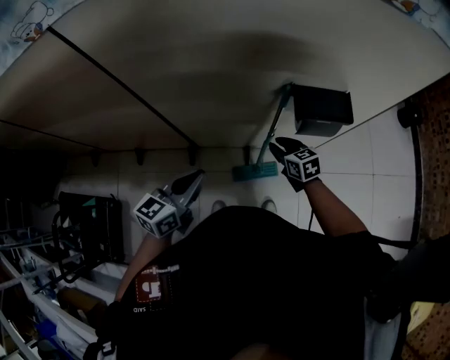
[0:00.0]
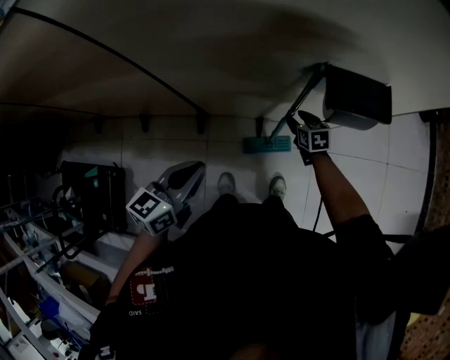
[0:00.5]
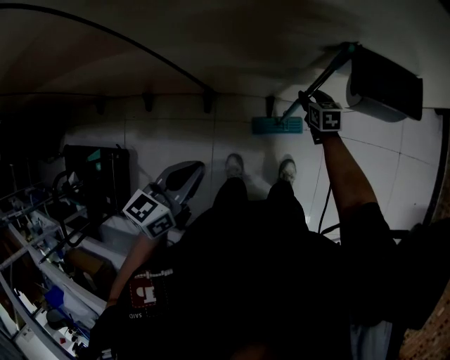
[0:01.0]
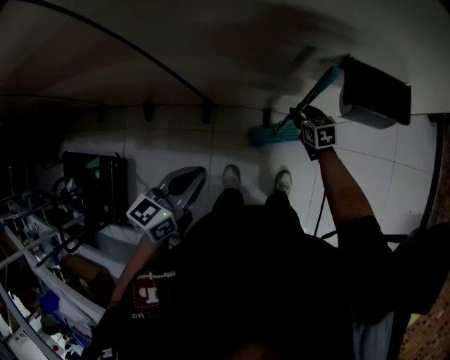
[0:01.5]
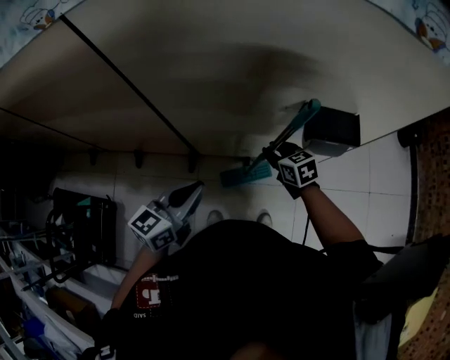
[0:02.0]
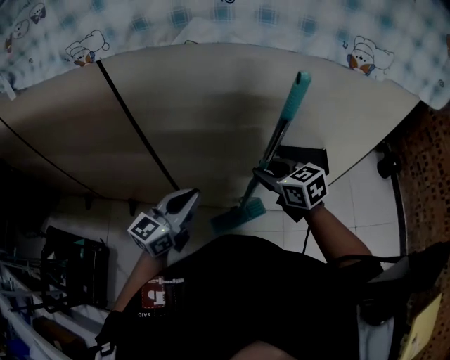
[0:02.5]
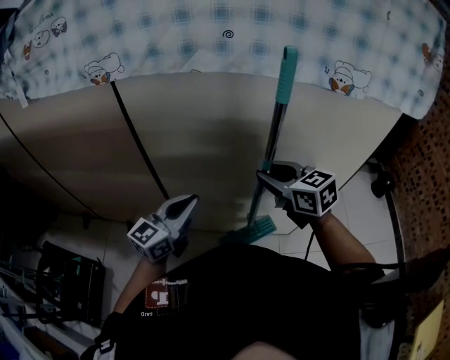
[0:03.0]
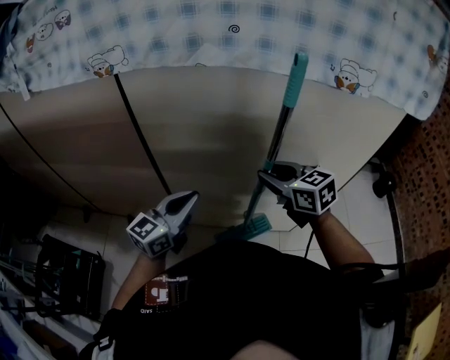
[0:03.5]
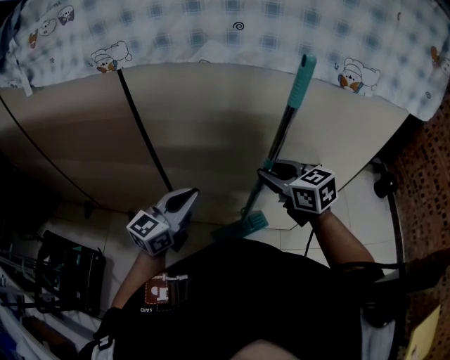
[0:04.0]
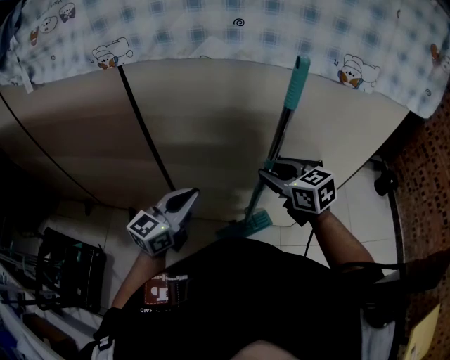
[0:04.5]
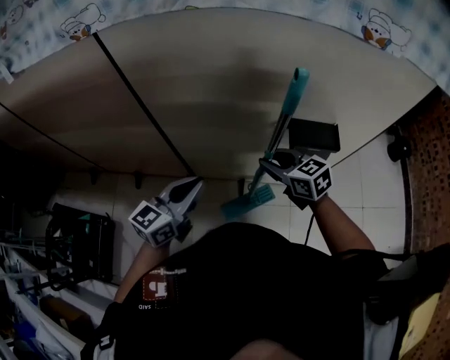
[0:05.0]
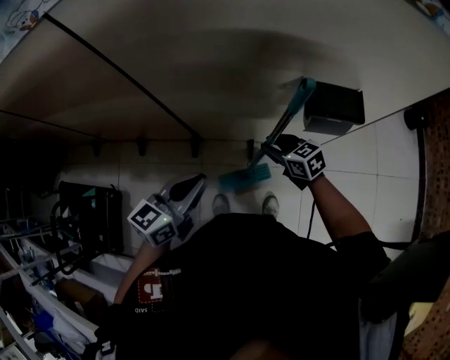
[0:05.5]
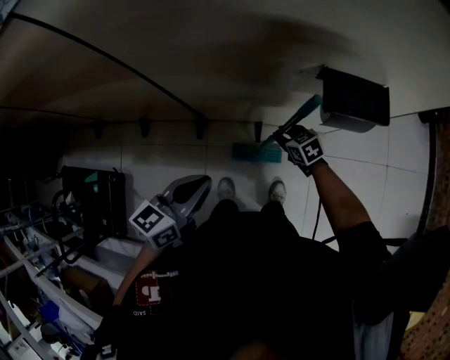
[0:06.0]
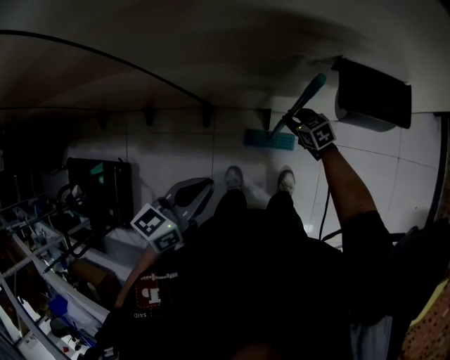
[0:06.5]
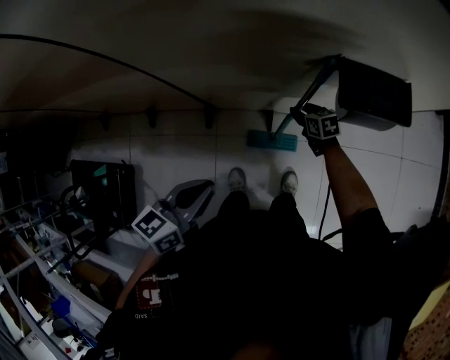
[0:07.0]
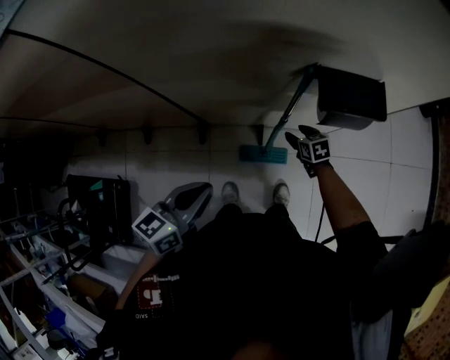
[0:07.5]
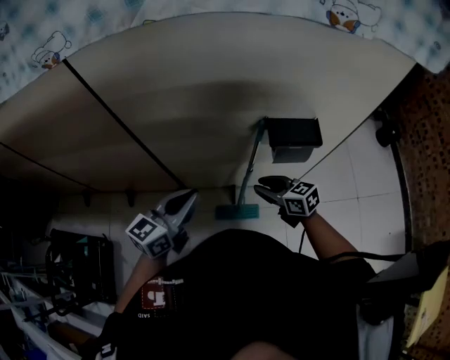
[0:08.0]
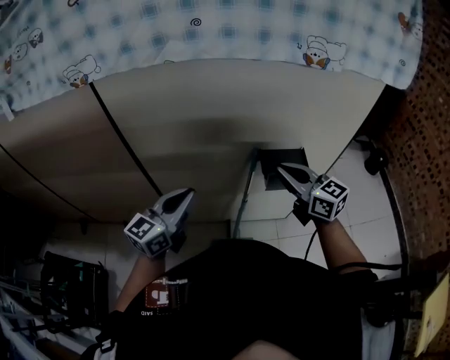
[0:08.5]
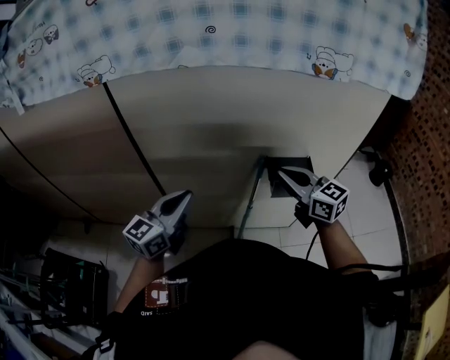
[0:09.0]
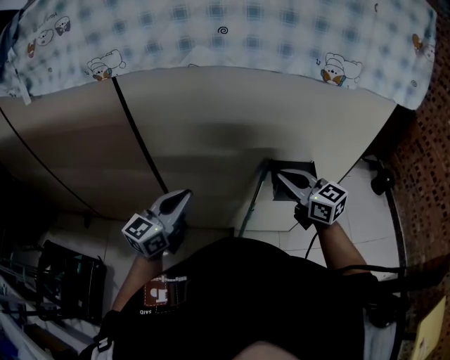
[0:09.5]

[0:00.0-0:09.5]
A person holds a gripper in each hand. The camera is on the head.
0:00.0 to 0:02.0: The left gripper goes downward and returns, roughly 5 cm each way. Meanwhile the right gripper moves to the left, approximately 5 cm, and travels downward and back again, some 15 cm each way.
0:02.0 to 0:04.0: The left gripper shifts about 10 cm upward. The right gripper moves upward, some 25 cm, and swivels about 20 degrees.
0:04.0 to 0:05.5: The left gripper shifts about 15 cm downward and backward, and swivels some 20 degrees, while the right gripper moves downward, about 30 cm.
0:05.5 to 0:07.5: The right gripper is displaced downward and to the right by roughly 20 cm, swivels approximately 20 degrees, and opens its fingers.
0:07.5 to 0:09.5: The left gripper shifts roughly 20 cm upward and forward, and turns by roughly 30 degrees, while the right gripper travels upward by approximately 50 cm, angles its fingers upward, by about 40 degrees, and closes.

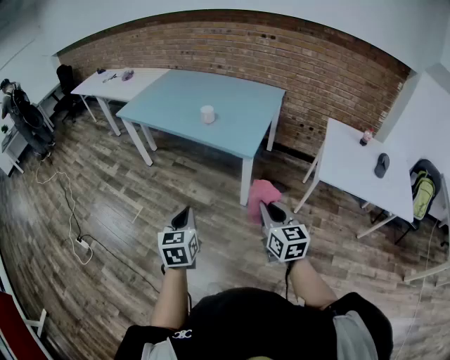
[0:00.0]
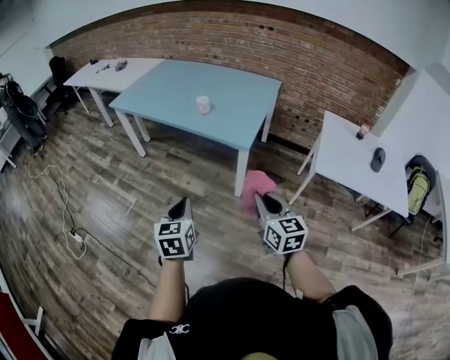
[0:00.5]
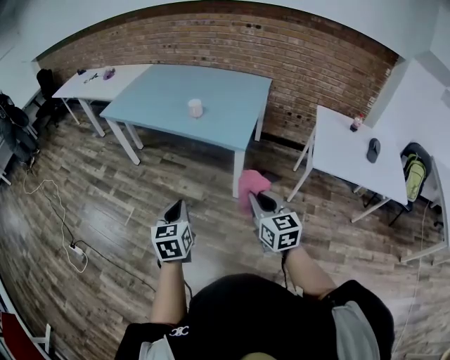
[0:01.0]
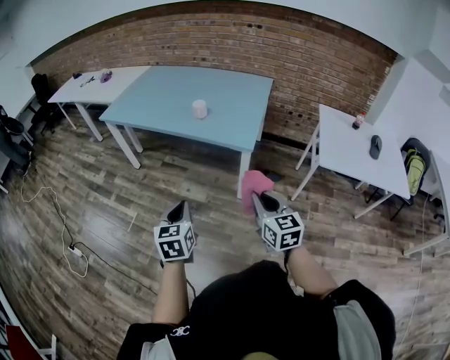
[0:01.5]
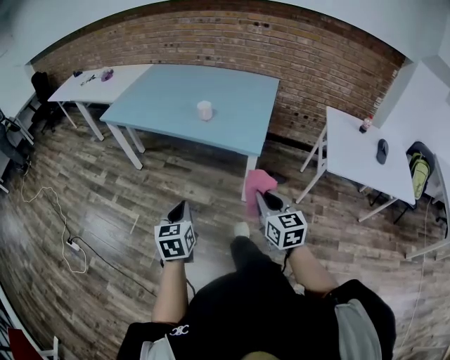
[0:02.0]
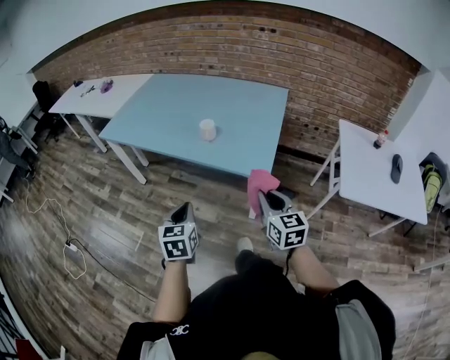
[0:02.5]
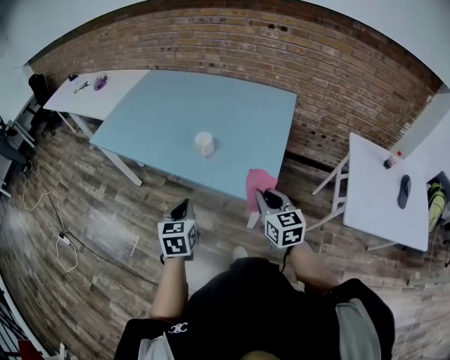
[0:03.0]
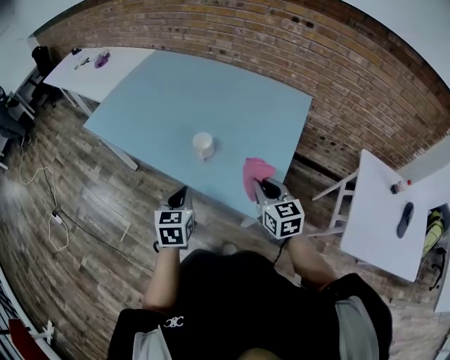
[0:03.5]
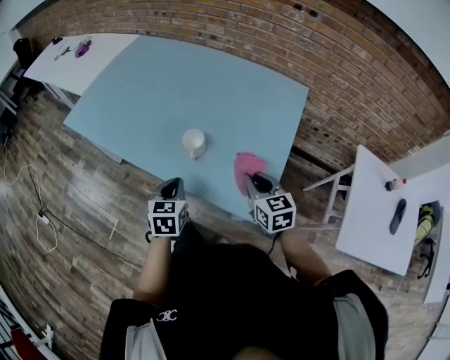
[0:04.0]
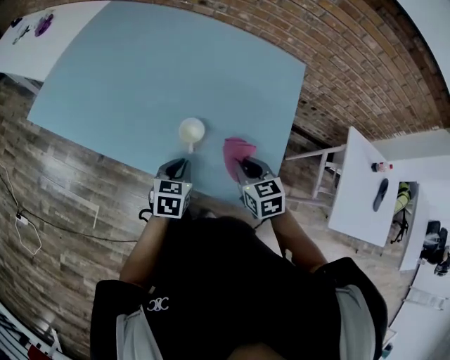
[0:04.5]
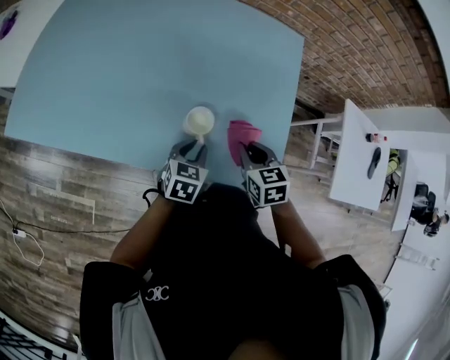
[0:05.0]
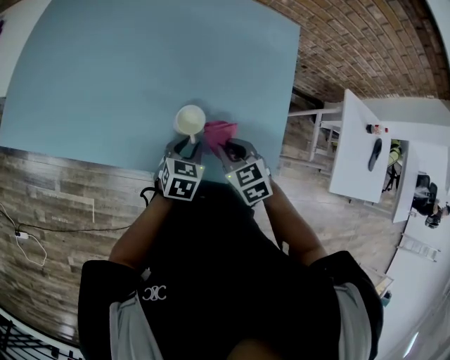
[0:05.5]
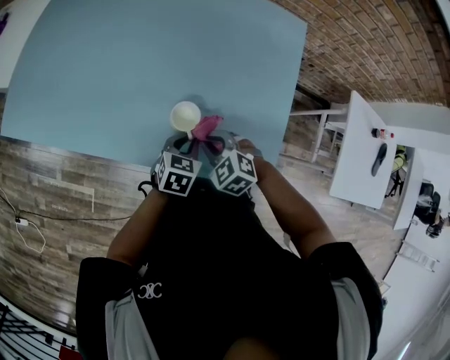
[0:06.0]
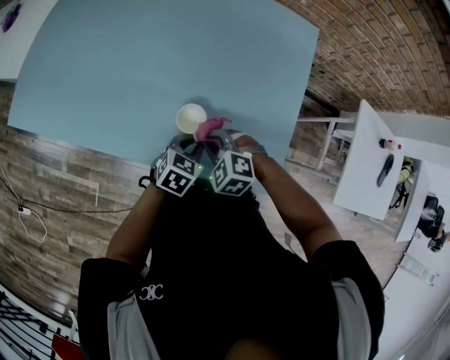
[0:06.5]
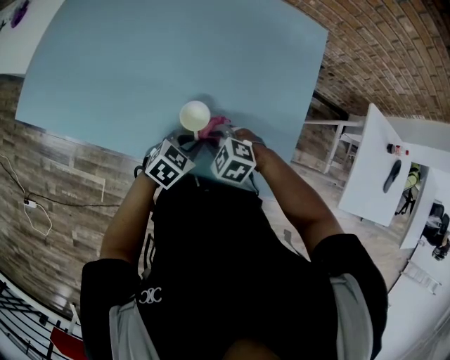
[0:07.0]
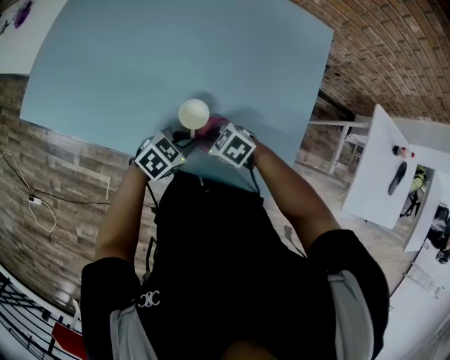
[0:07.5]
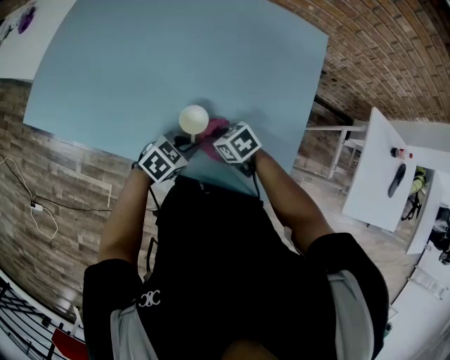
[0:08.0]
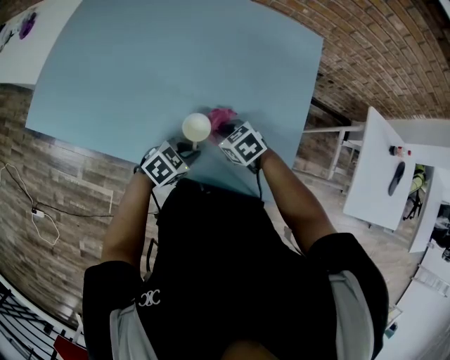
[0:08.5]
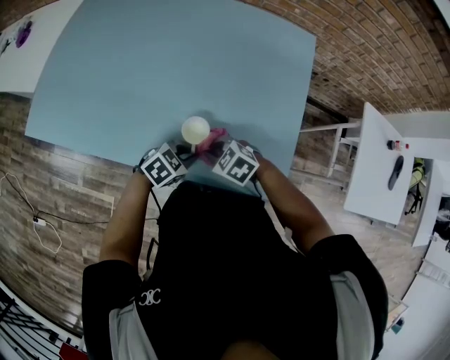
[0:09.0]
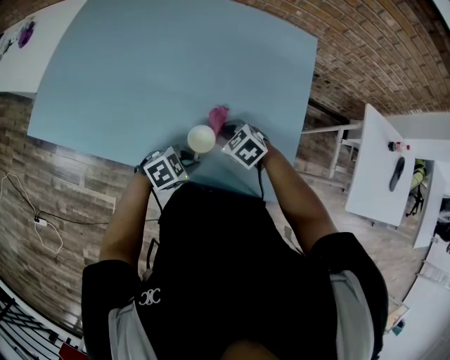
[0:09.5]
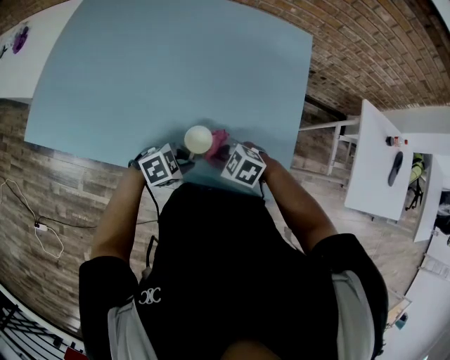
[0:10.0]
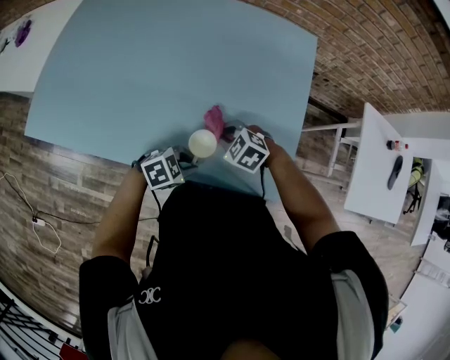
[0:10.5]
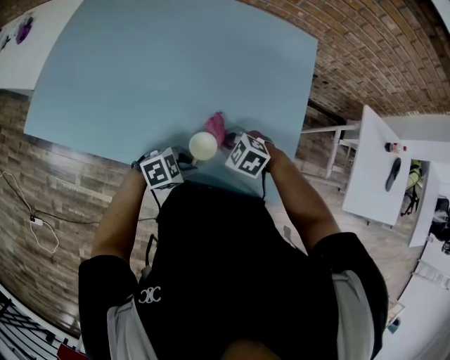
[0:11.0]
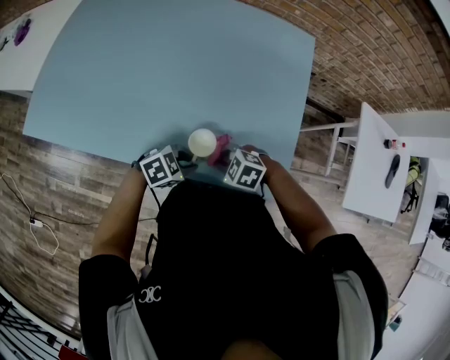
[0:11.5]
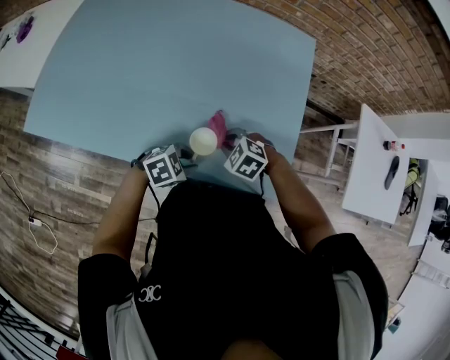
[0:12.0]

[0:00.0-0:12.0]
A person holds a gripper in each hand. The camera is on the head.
0:00.0 to 0:02.0: Both grippers move forward and to the left, roughly 10 cm.
0:02.0 to 0:04.0: Both grippers are carried forward, about 40 cm.
0:04.0 to 0:06.0: The right gripper shifts by some 20 cm, and changes its angle by approximately 40 degrees. Meanwhile the left gripper moves downward, roughly 10 cm, and swivels approximately 30 degrees.
0:06.0 to 0:08.0: The right gripper travels downward by about 5 cm, and swivels roughly 40 degrees; the left gripper rotates some 30 degrees.
0:08.0 to 0:10.0: The right gripper ends up about 5 cm from where it was, and turns by roughly 30 degrees. Meanwhile the left gripper rotates roughly 20 degrees.

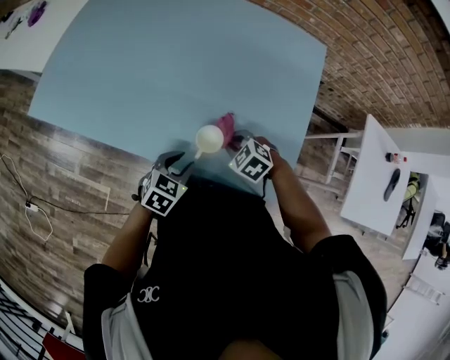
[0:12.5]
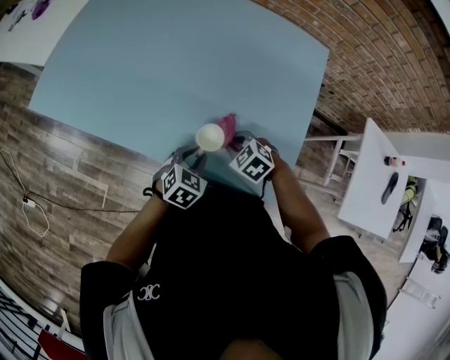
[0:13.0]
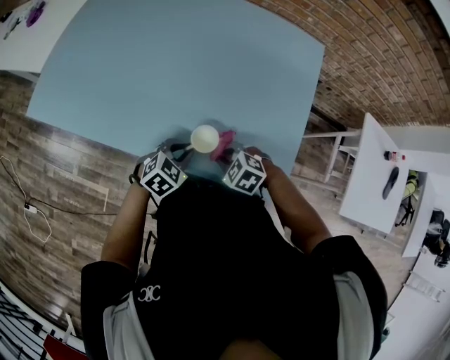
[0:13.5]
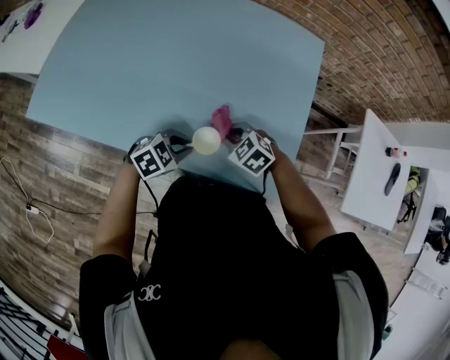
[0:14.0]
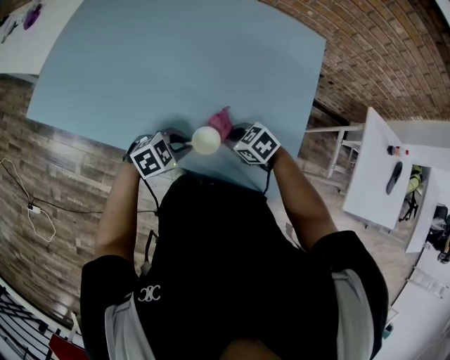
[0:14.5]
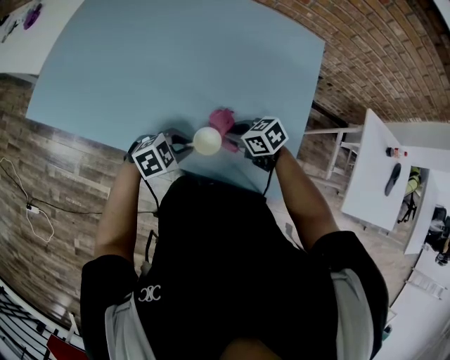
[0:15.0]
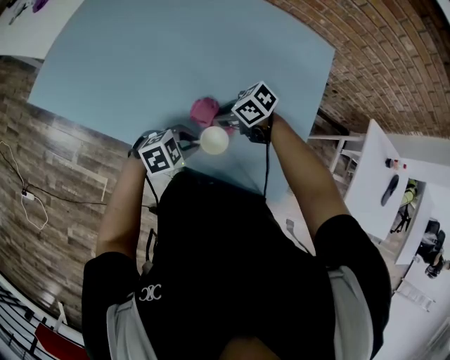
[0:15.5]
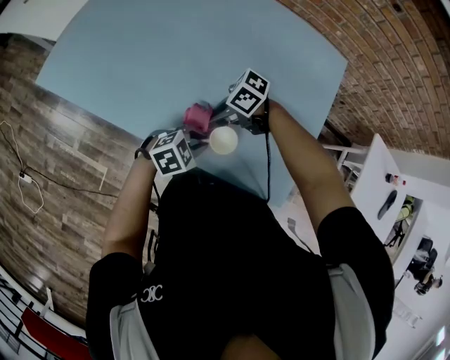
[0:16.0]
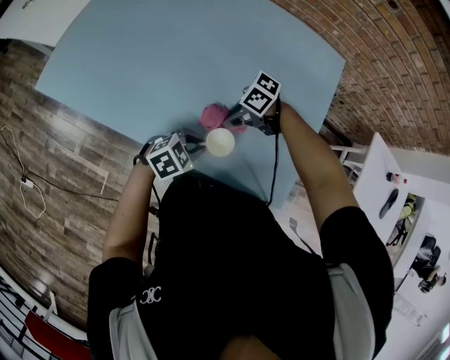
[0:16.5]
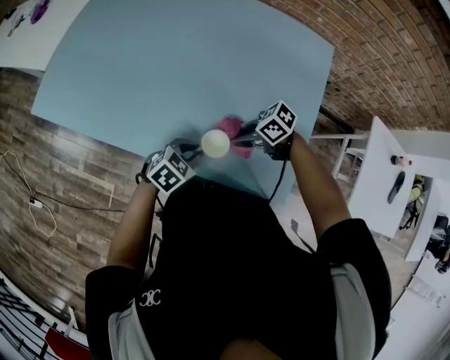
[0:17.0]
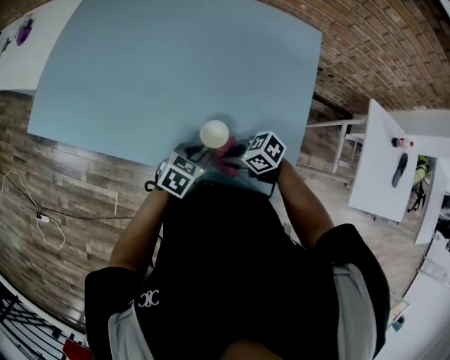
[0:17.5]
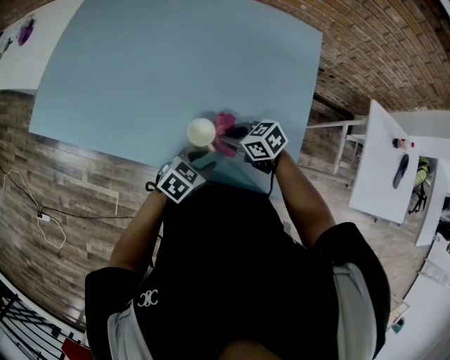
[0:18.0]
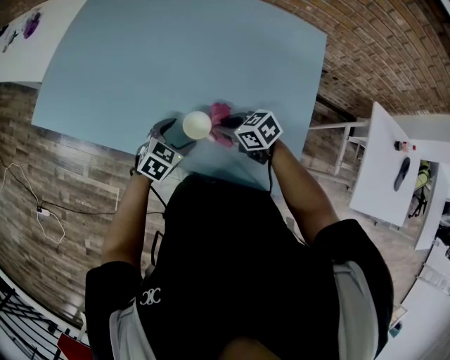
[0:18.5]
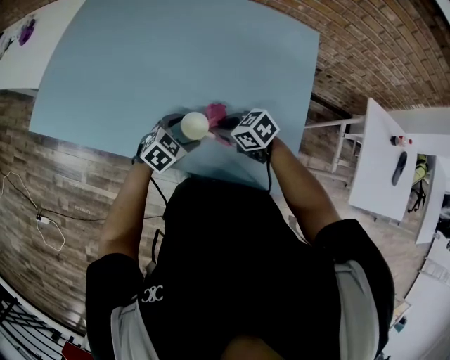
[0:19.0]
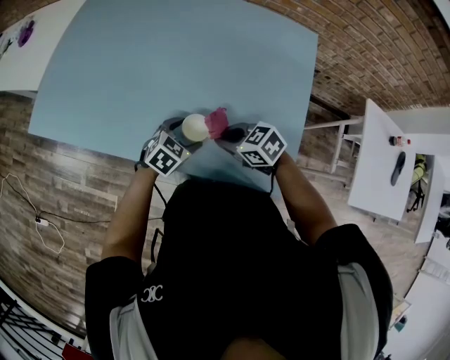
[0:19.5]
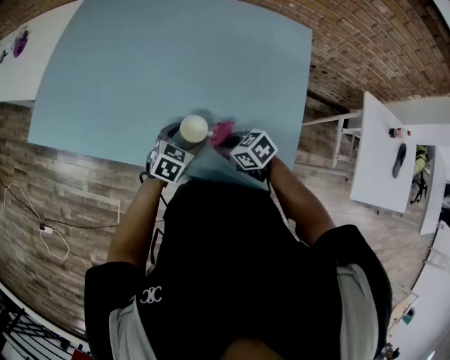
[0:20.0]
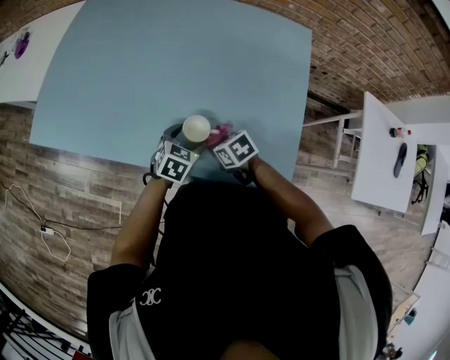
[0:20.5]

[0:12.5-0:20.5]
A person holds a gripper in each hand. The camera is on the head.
0:12.5 to 0:14.5: The right gripper changes its angle by about 20 degrees, while the left gripper rotates about 30 degrees.
0:14.5 to 0:16.5: The right gripper rotates about 40 degrees.
0:16.5 to 0:18.5: The left gripper ends up roughly 5 cm from where it was, and opens up; the right gripper changes its angle by roughly 40 degrees.
0:18.5 to 0:20.5: The right gripper moves downward, some 5 cm, and swivels roughly 20 degrees.
